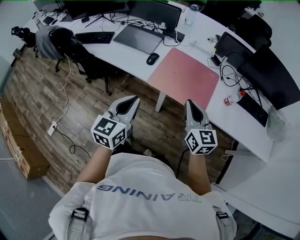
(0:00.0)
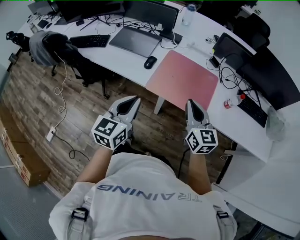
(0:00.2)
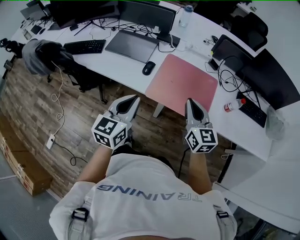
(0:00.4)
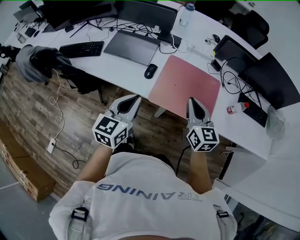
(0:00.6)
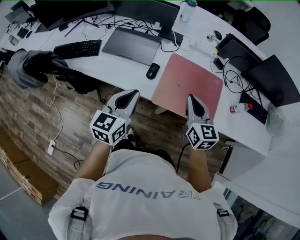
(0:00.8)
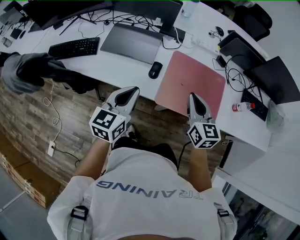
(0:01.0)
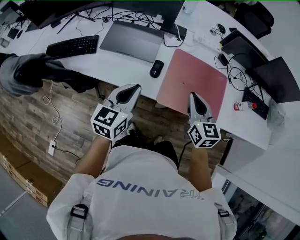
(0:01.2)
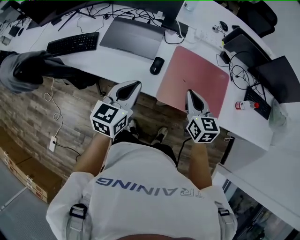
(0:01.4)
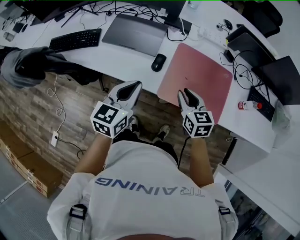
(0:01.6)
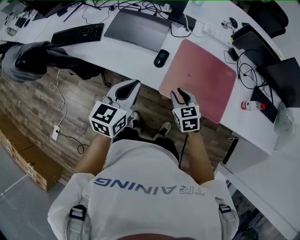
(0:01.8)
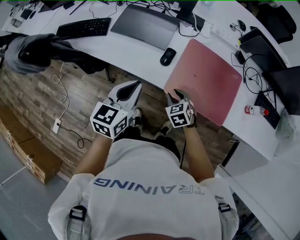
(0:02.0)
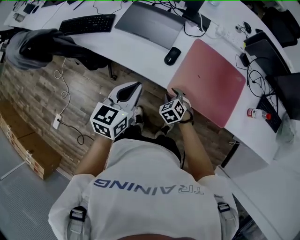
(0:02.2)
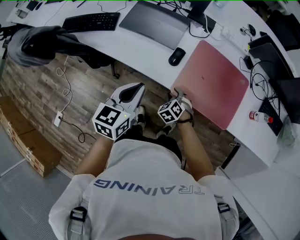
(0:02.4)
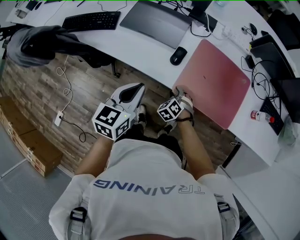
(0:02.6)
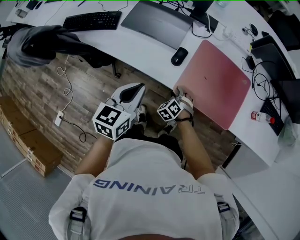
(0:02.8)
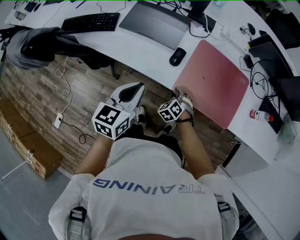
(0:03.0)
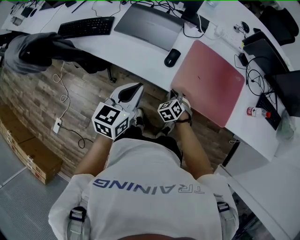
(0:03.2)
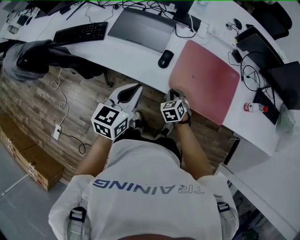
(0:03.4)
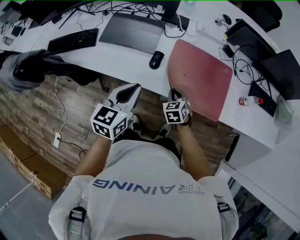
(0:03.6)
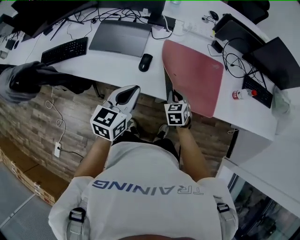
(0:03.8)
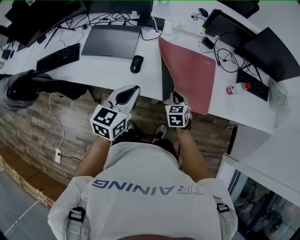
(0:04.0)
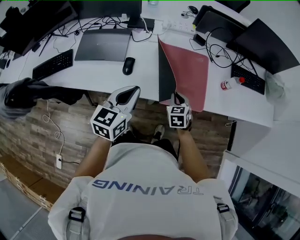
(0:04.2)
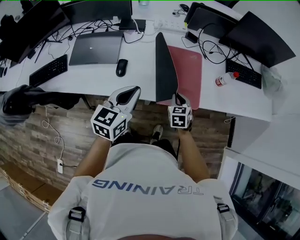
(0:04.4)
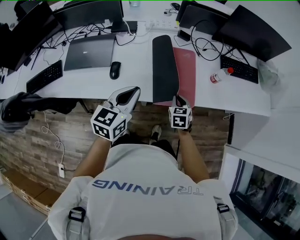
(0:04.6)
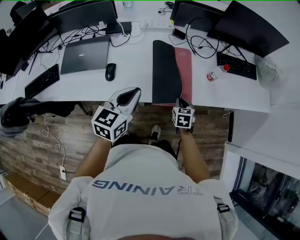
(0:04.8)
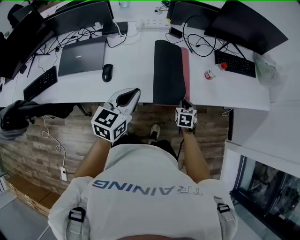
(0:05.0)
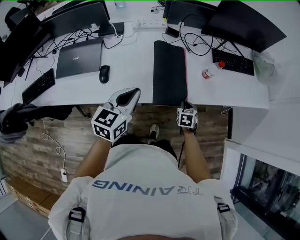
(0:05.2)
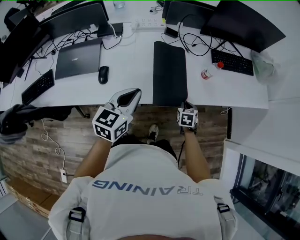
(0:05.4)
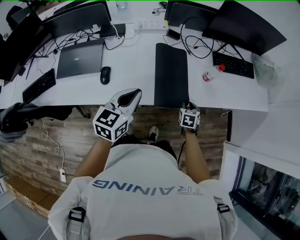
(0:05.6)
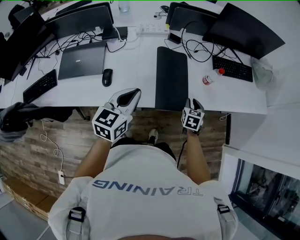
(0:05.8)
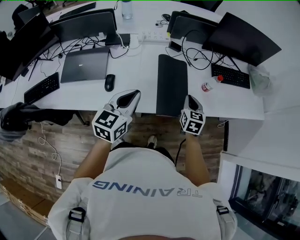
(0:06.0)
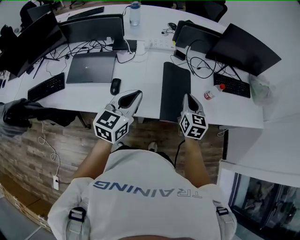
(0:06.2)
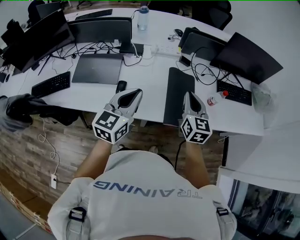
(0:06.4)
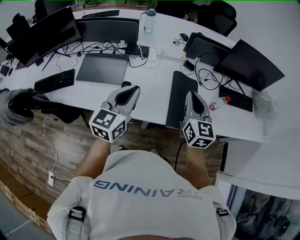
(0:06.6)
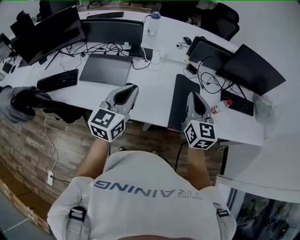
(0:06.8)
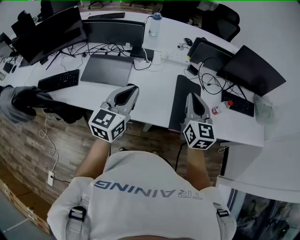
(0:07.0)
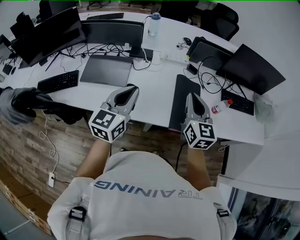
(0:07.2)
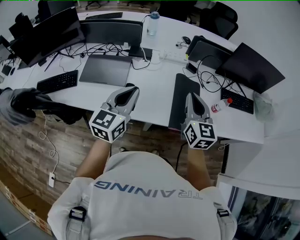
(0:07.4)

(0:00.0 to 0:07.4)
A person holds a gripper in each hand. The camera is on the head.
0:00.0 - 0:01.4: Both grippers travel together forward and to the left, roughly 25 cm.
0:01.4 - 0:03.0: The left gripper moves some 5 cm. Meanwhile the right gripper goes approximately 25 cm downward, rotates around the line of its fingers by about 50 degrees, counterclockwise from behind, and opens.
0:03.0 - 0:04.4: The right gripper shifts some 25 cm to the right and upward, and rolls clockwise, seen from behind, by approximately 50 degrees. Meanwhile the left gripper travels to the right by some 20 cm, and turns by about 20 degrees.
0:04.4 - 0:06.0: The right gripper moves to the right, upward and forward, roughly 15 cm, swivels about 20 degrees, and opens and closes again. Meanwhile the left gripper heads forward, covering some 5 cm.
0:06.0 - 0:07.4: The right gripper is displaced upward and to the left by roughly 25 cm, and changes its angle by roughly 30 degrees, while the left gripper goes some 15 cm to the left and upward.

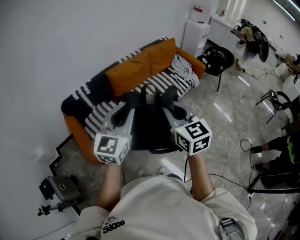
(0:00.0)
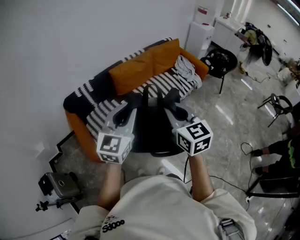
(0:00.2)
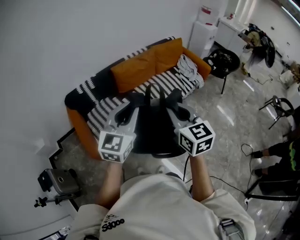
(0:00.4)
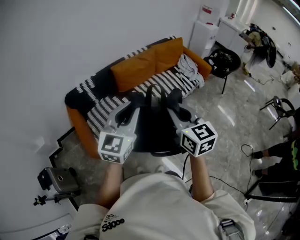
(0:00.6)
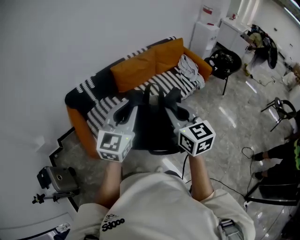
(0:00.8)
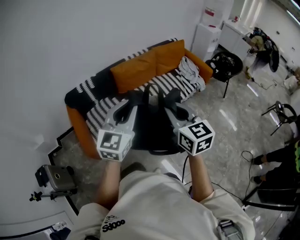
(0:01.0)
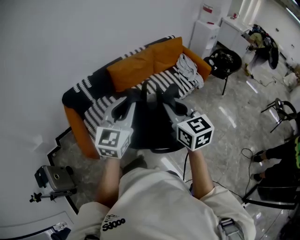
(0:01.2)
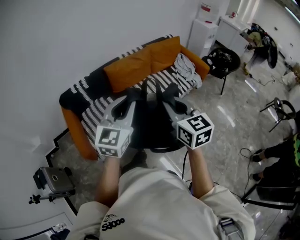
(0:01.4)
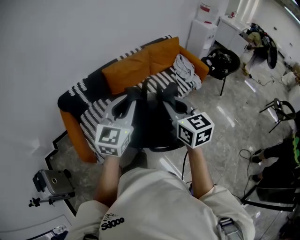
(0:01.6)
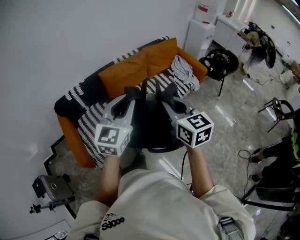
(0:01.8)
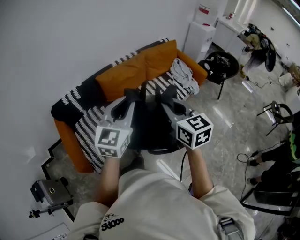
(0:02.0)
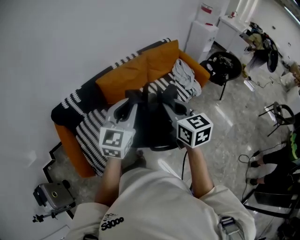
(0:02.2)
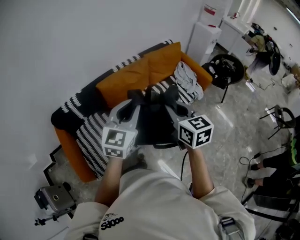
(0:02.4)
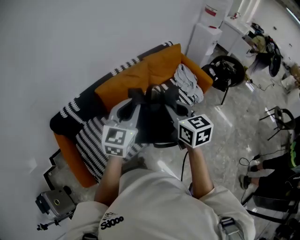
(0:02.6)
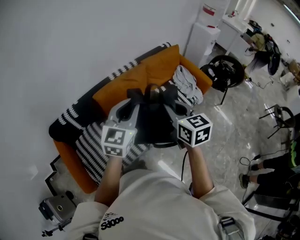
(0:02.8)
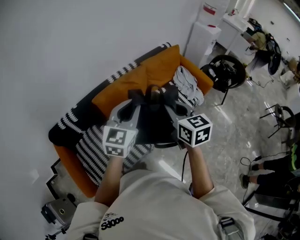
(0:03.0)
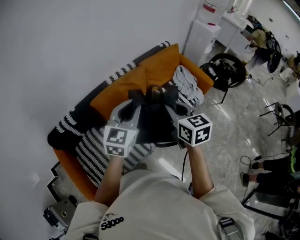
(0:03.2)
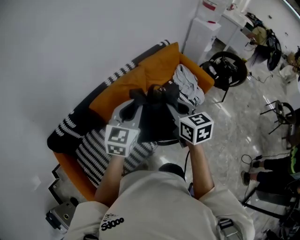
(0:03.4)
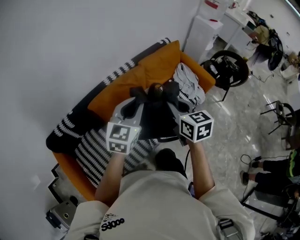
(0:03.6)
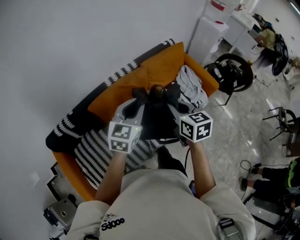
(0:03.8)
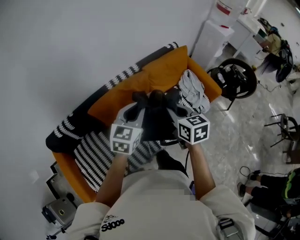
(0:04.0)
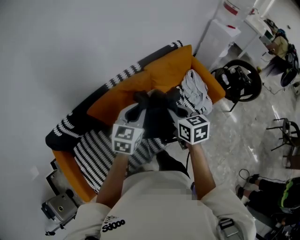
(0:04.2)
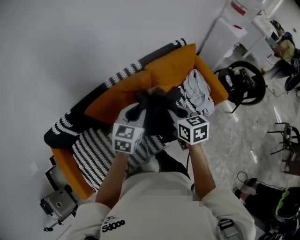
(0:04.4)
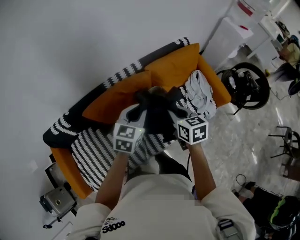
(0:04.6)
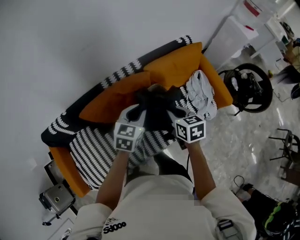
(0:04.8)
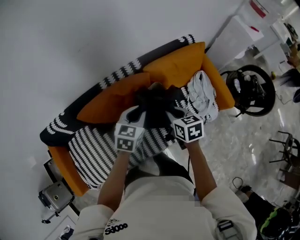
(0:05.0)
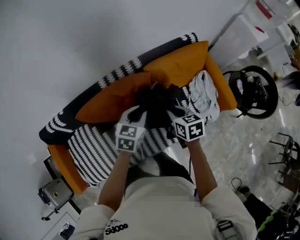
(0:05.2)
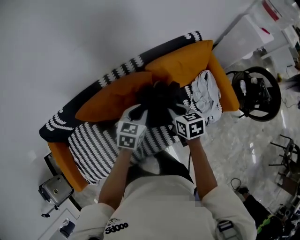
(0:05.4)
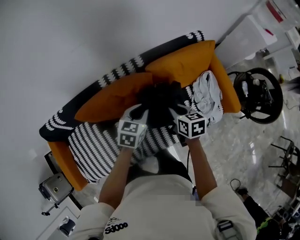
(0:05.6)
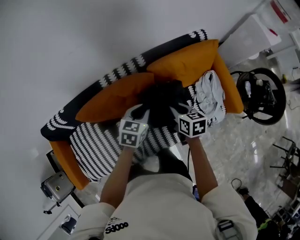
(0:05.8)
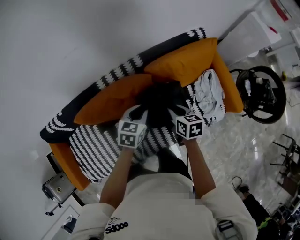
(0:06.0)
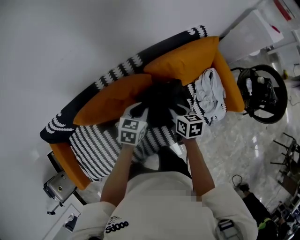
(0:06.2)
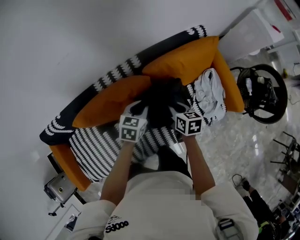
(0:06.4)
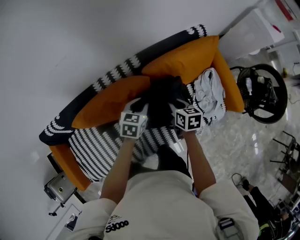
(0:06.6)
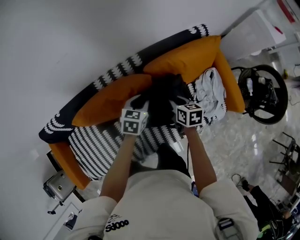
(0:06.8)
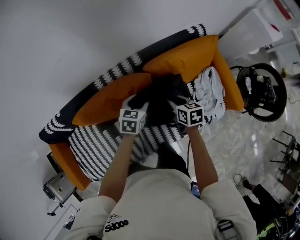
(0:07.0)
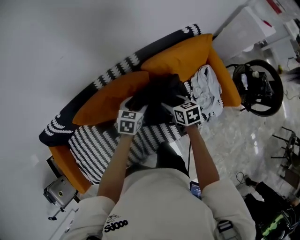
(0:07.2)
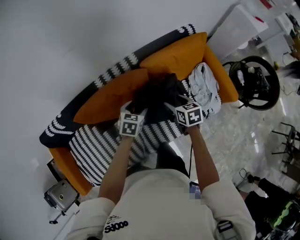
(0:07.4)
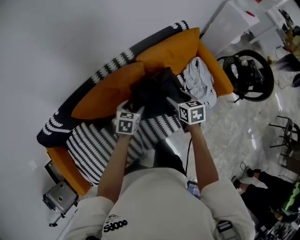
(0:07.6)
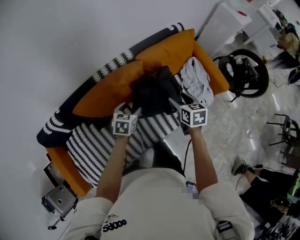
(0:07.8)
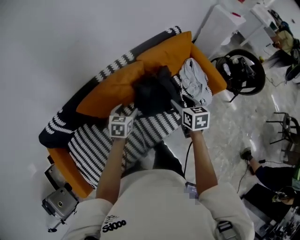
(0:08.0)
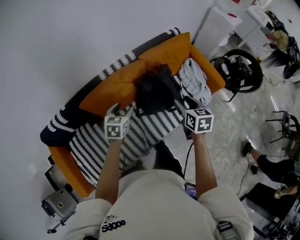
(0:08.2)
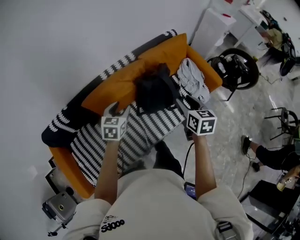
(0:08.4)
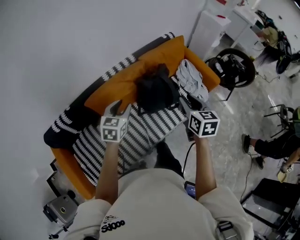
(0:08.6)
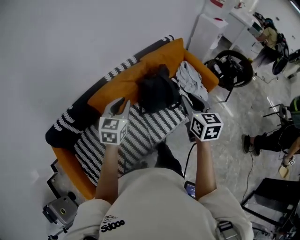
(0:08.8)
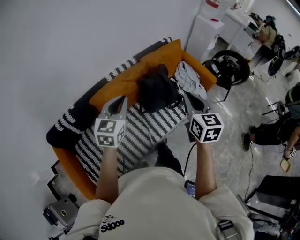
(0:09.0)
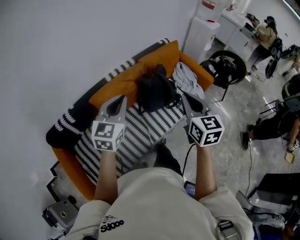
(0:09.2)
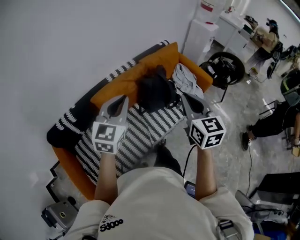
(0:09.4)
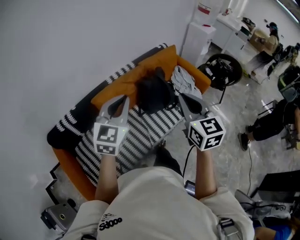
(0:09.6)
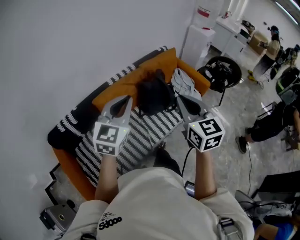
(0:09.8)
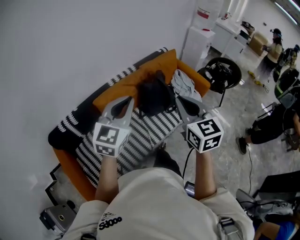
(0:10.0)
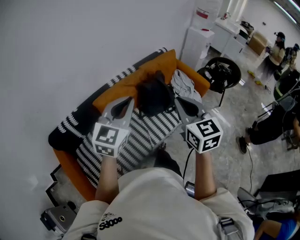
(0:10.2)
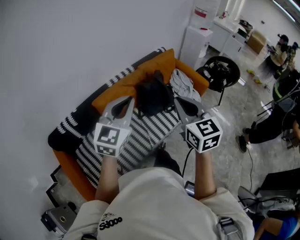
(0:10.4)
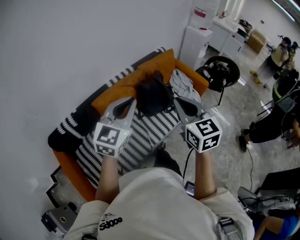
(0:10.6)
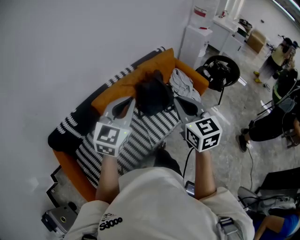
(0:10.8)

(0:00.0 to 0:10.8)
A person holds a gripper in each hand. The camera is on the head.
0:00.0 - 0:01.6: The two grippers go roughly 10 cm to the right and forward.
0:01.6 - 0:03.0: The two grippers go roughly 35 cm forward.
0:03.0 - 0:04.6: Both grippers move forward and downward, approximately 30 cm. The left gripper rotates about 20 degrees.
0:04.6 - 0:06.2: Both grippers travel together downward and forward, about 25 cm.
0:06.2 - 0:07.8: The left gripper moves backward and to the left, some 15 cm, and opens. The right gripper goes roughly 15 cm backward and upward, and opens.
0:07.8 - 0:09.2: The left gripper goes approximately 40 cm upward and backward, tilts its fingers some 40 degrees upward, and closes up. The right gripper heads backward and upward, covering approximately 40 cm, turns by roughly 30 degrees, and closes.
0:09.2 - 0:10.8: The left gripper travels backward and upward by roughly 10 cm. Meanwhile the right gripper shifts about 10 cm backward.

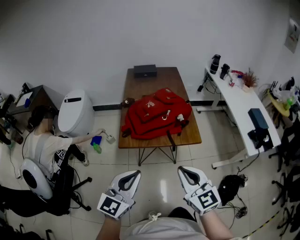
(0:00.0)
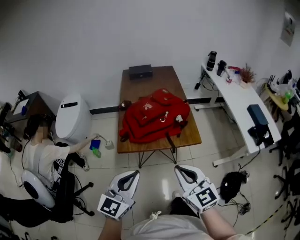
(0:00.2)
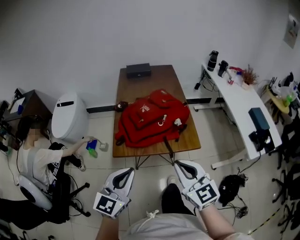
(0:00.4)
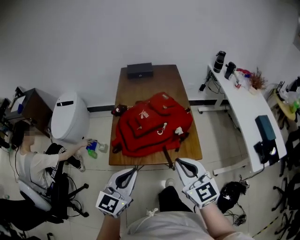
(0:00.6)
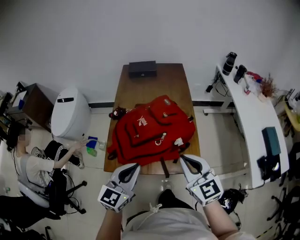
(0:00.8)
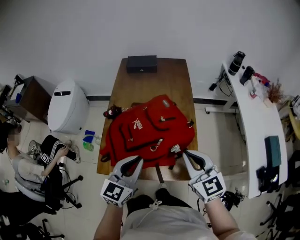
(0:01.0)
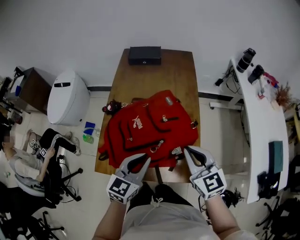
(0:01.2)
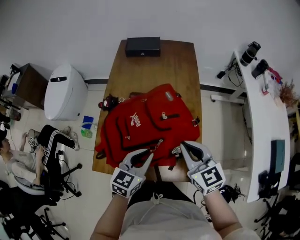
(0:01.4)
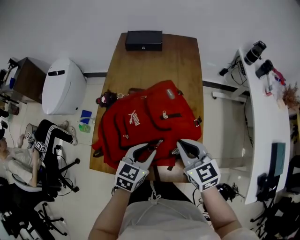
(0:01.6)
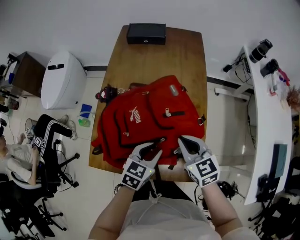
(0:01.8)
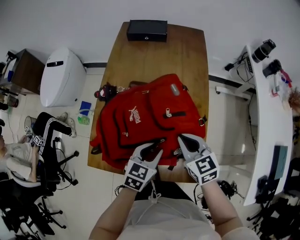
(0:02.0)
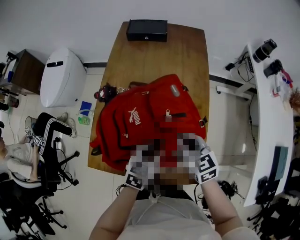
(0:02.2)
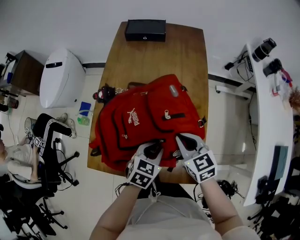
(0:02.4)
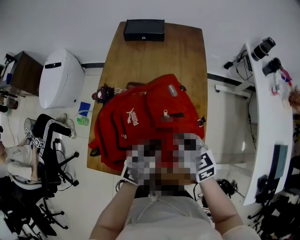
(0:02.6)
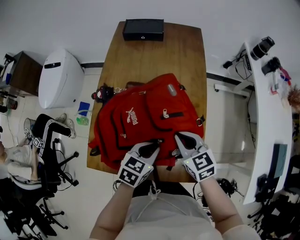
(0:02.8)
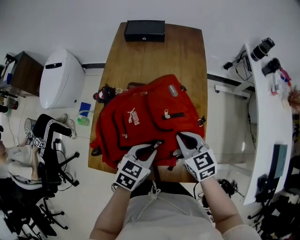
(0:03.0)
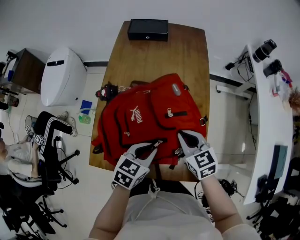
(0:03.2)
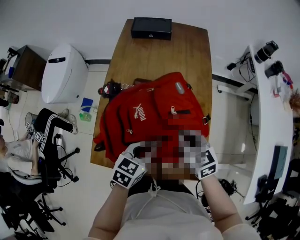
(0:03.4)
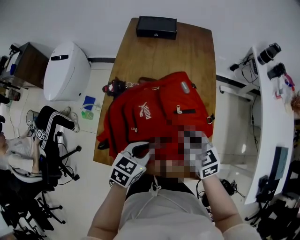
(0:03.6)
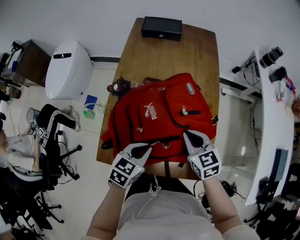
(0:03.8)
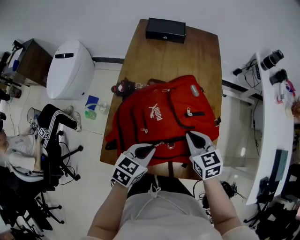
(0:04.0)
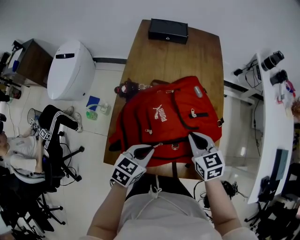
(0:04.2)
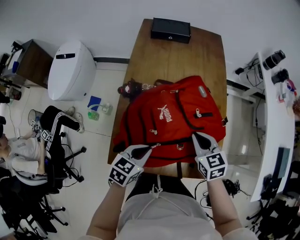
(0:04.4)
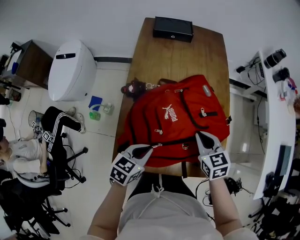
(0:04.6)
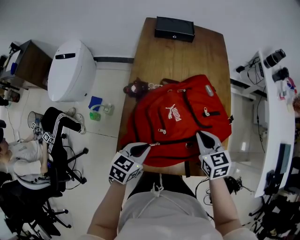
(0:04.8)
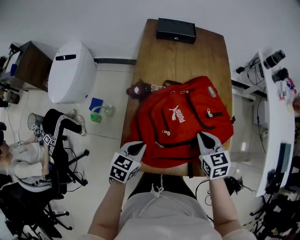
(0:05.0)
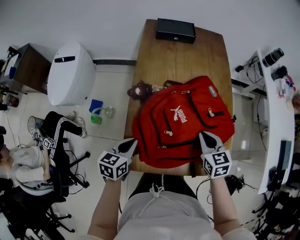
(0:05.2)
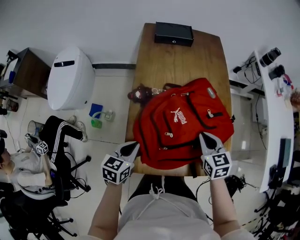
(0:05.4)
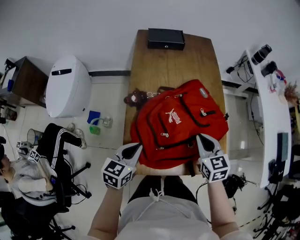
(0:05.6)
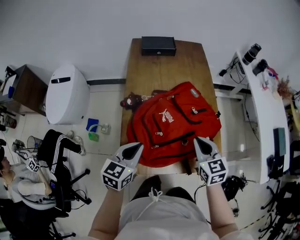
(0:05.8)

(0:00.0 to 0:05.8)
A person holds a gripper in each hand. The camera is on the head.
0:00.0 - 0:01.4: The two grippers travel together, forward, roughly 40 cm. The left gripper goes approximately 15 cm downward, and changes its angle by about 30 degrees.
0:01.4 - 0:02.8: The left gripper moves downward, approximately 10 cm. The right gripper travels downward and forward by approximately 10 cm.
0:02.8 - 0:04.4: The left gripper is displaced to the left by about 15 cm. Meanwhile the right gripper changes place by about 5 cm.
0:04.4 - 0:05.8: The left gripper goes approximately 10 cm upward and to the left, while the right gripper goes approximately 10 cm upward and backward.
